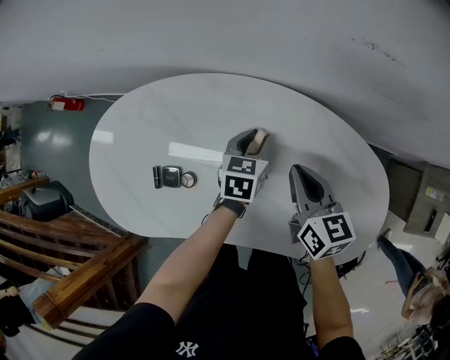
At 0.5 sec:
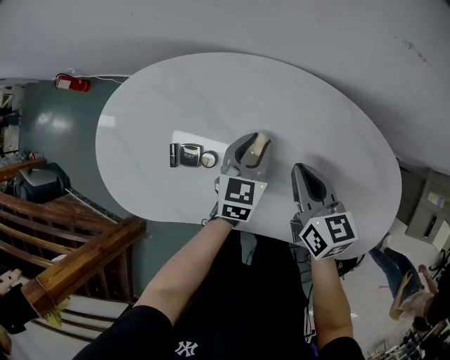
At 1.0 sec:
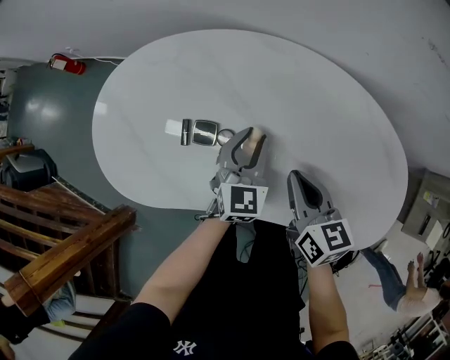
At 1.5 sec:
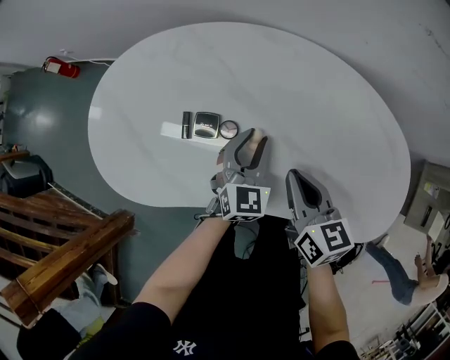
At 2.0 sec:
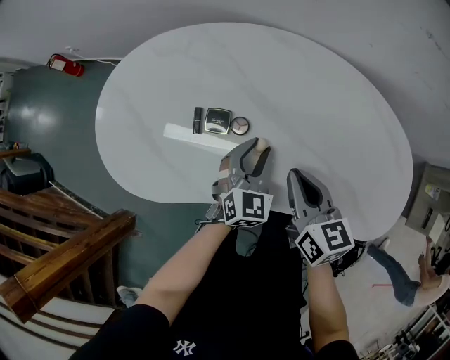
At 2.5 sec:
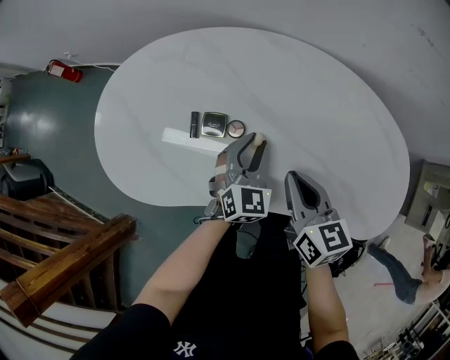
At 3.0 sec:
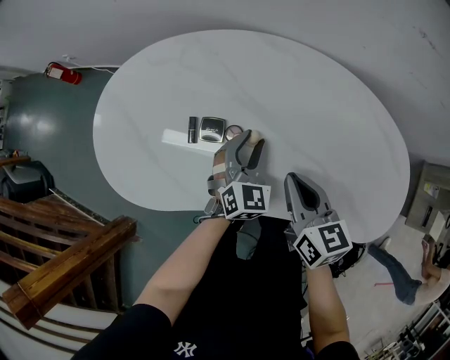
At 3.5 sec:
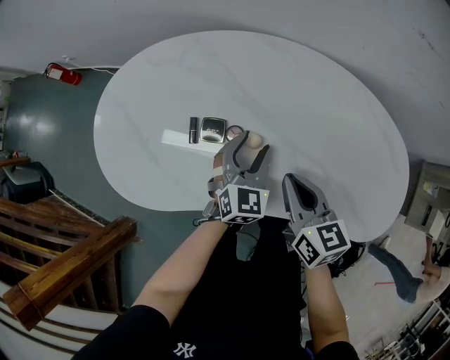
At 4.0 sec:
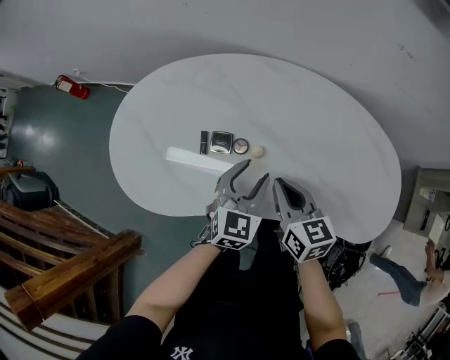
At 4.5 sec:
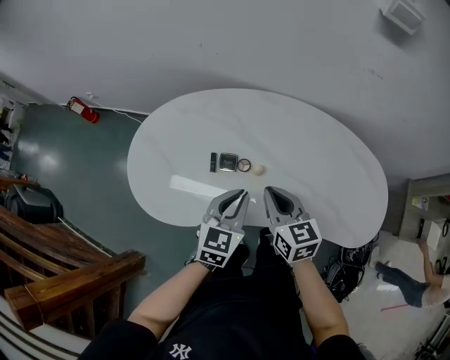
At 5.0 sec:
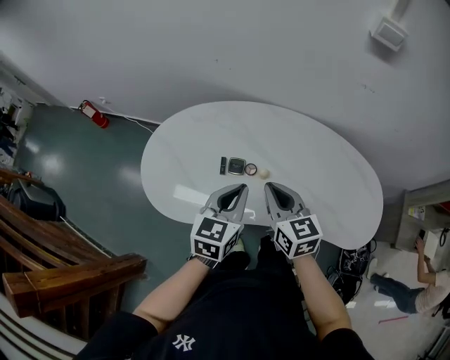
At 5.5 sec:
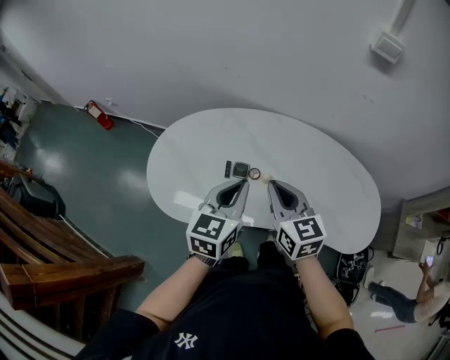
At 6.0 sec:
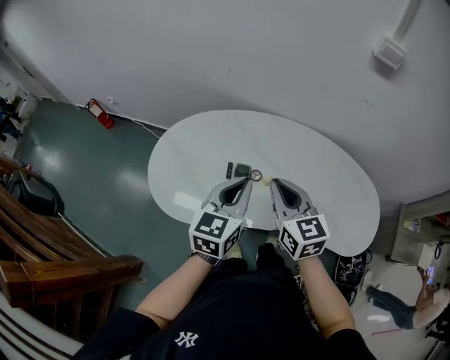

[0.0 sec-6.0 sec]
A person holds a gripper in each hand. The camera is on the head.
0.0 sec to 2.0 sec: The two grippers go roughly 25 cm to the left and backward. The left gripper swivels approximately 30 degrees.
2.0 sec to 4.0 sec: The left gripper heads upward, covering approximately 10 cm.
4.0 sec to 6.0 sec: The right gripper moves upward, some 20 cm; the left gripper is displaced upward and to the left by about 25 cm, and closes its fingers.

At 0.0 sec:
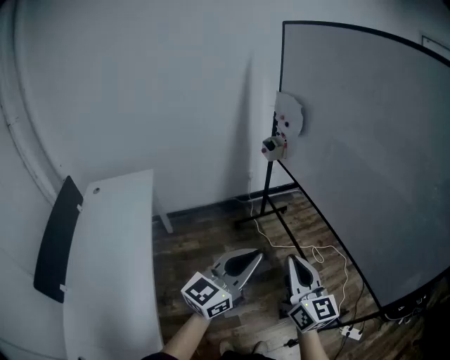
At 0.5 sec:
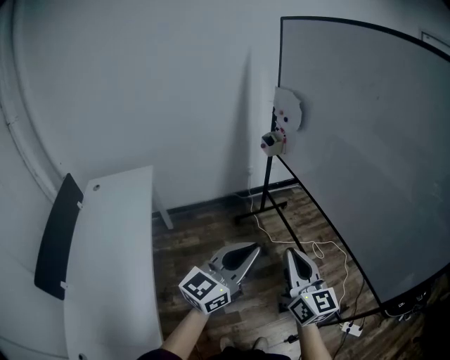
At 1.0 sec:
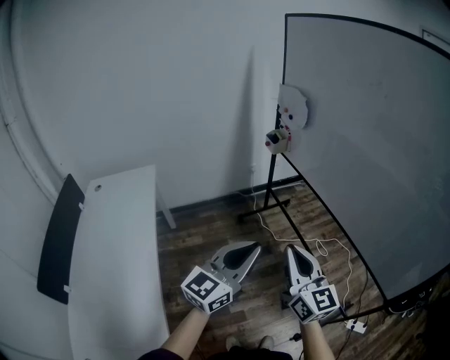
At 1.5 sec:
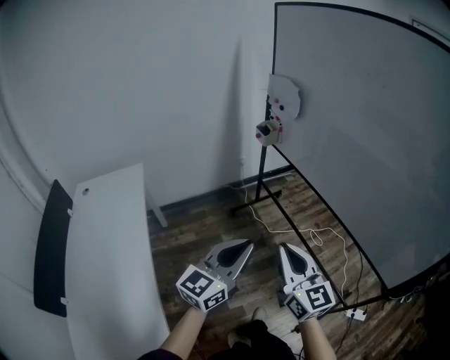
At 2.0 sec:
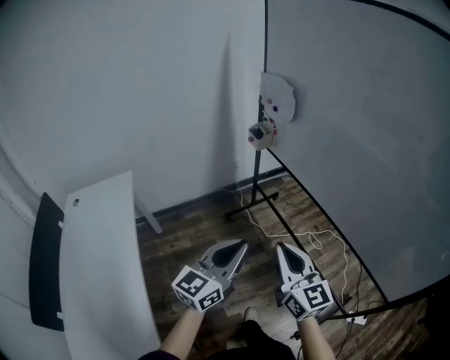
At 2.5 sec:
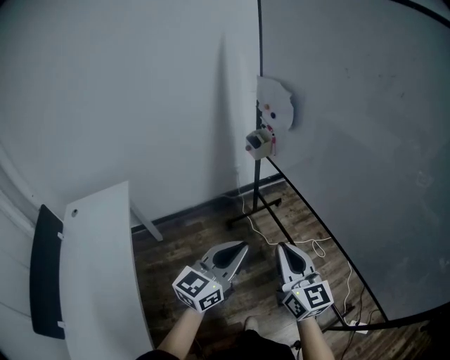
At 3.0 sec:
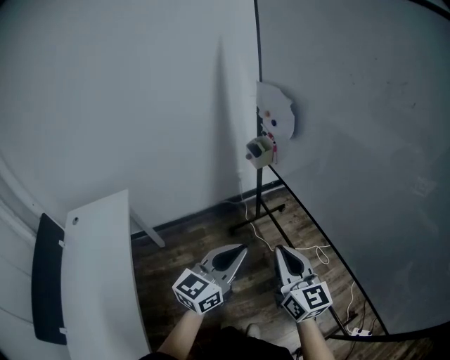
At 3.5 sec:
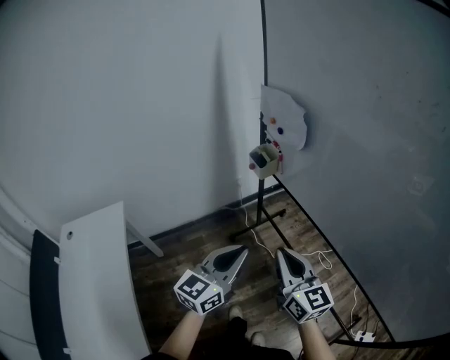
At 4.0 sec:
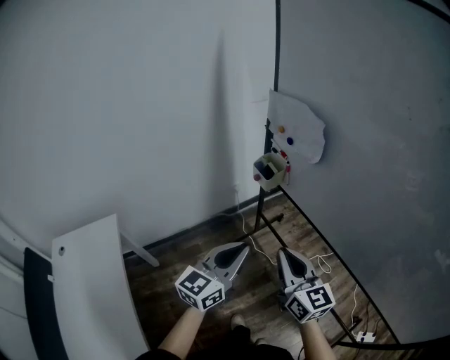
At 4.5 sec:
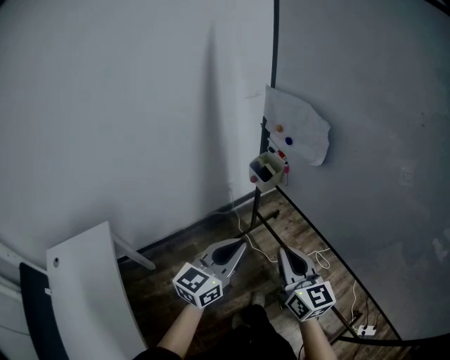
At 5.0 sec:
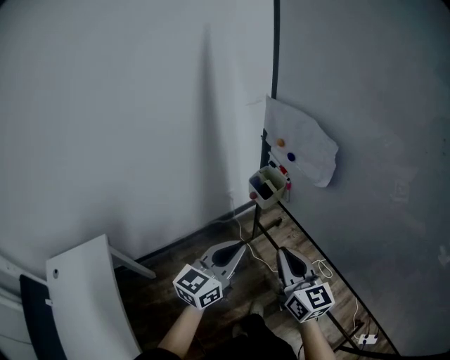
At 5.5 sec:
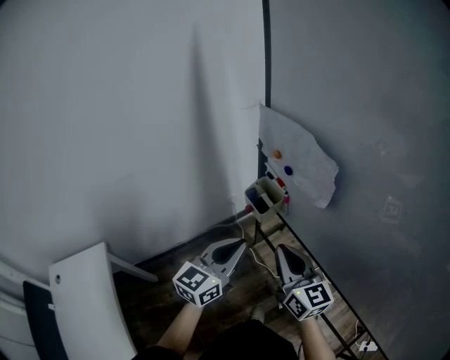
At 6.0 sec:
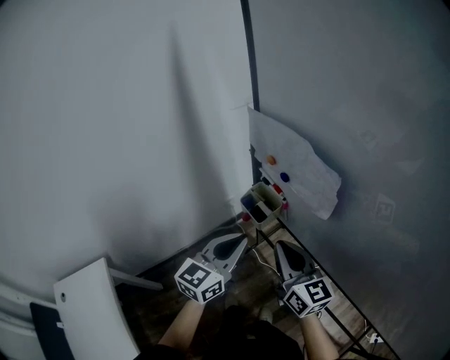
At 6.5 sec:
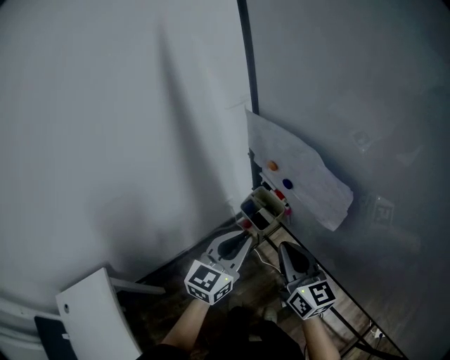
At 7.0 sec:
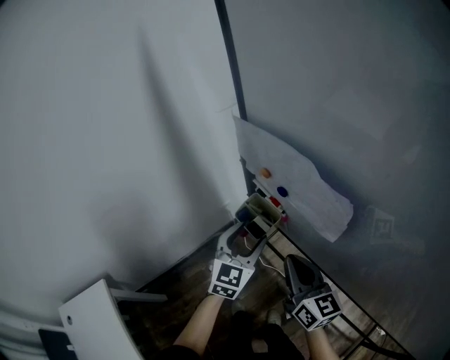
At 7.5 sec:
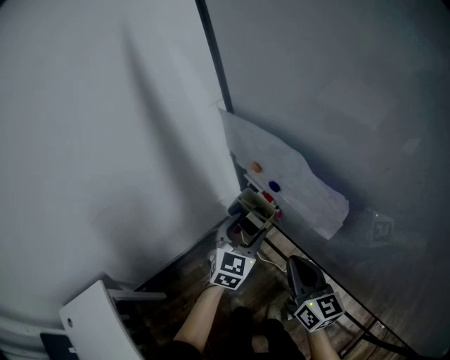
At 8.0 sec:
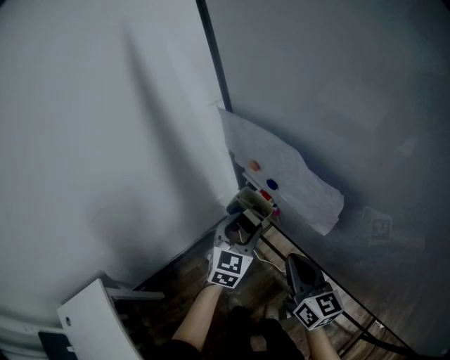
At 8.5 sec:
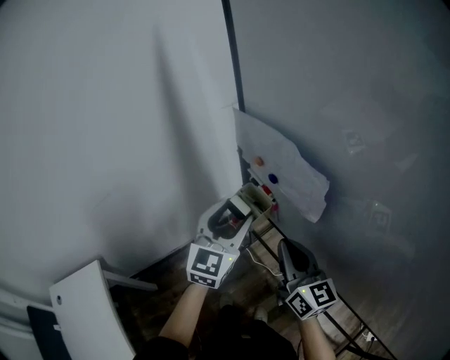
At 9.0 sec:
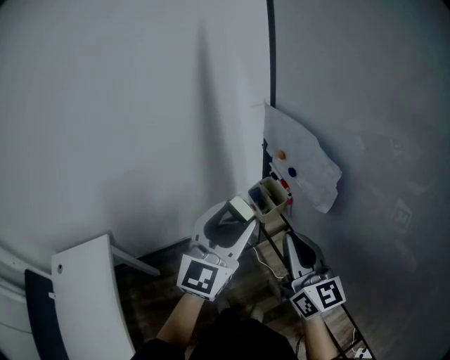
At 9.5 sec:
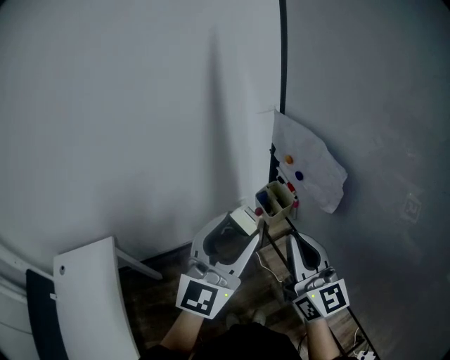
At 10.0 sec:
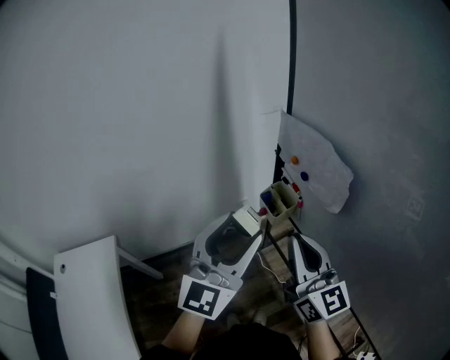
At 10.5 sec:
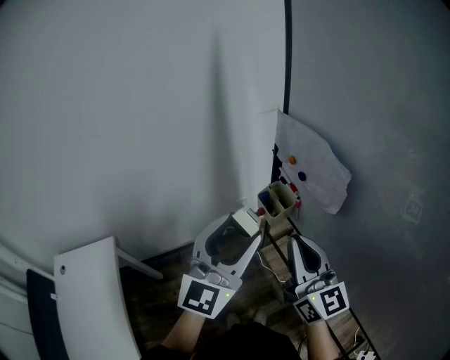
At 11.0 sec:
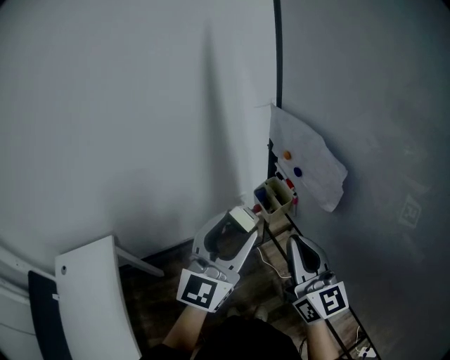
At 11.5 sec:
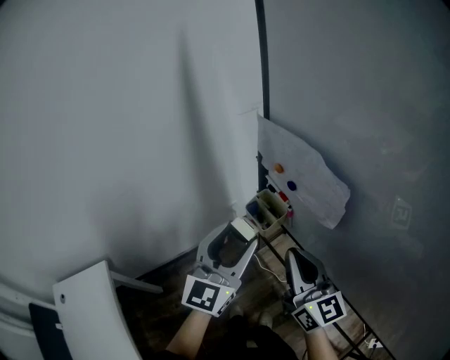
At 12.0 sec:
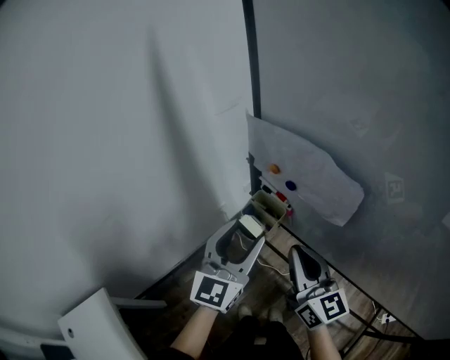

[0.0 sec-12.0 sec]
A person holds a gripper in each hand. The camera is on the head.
0.0 sec to 2.0 sec: Both grippers travel together forward and to the left, approximately 10 cm.
2.0 sec to 4.0 sec: Both grippers travel together forward, about 30 cm.
4.0 sec to 6.0 sec: Both grippers travel together forward, some 25 cm.
6.0 sec to 8.0 sec: The right gripper goes approximately 5 cm downward and to the right; the left gripper goes about 15 cm forward and downward, turns by about 30 degrees, and opens up.
8.0 sec to 10.0 sec: The left gripper is displaced upward and backward by about 30 cm, and points its fingers about 30 degrees further upward. Meanwhile the right gripper heads upward, backward and to the left, covering approximately 20 cm, and changes its angle by roughly 30 degrees.
10.0 sec to 12.0 sec: The left gripper shifts roughly 15 cm forward and downward, and changes its angle by some 20 degrees, while the right gripper heads downward and forward, covering approximately 10 cm, and changes its angle by approximately 20 degrees.

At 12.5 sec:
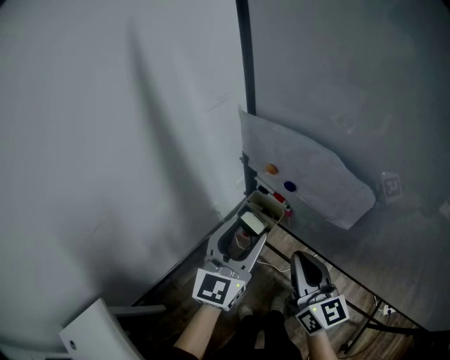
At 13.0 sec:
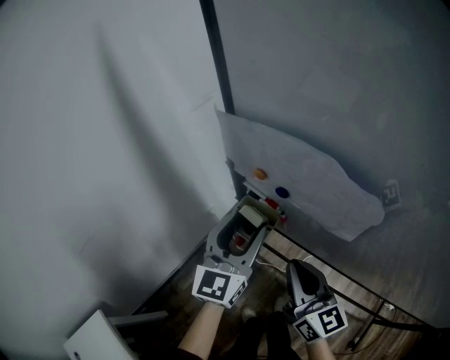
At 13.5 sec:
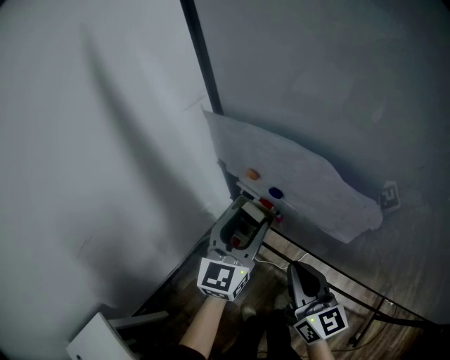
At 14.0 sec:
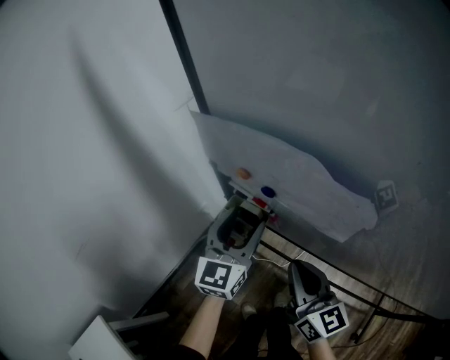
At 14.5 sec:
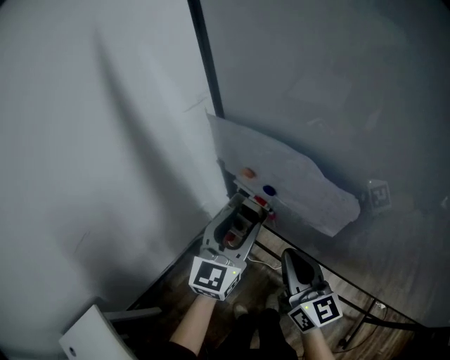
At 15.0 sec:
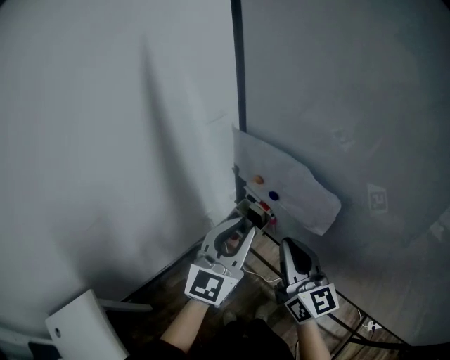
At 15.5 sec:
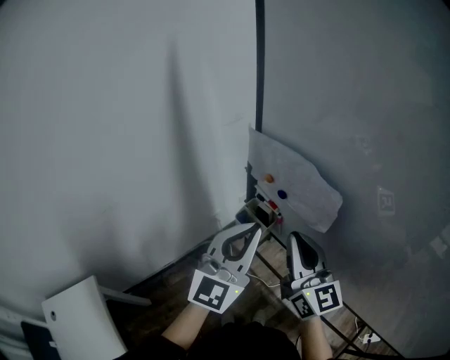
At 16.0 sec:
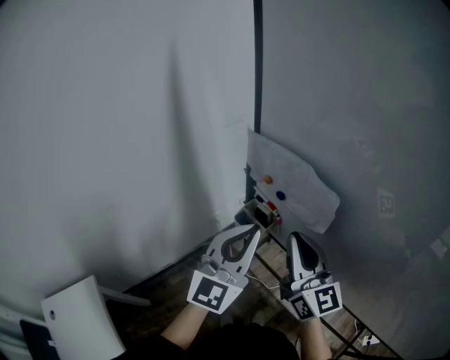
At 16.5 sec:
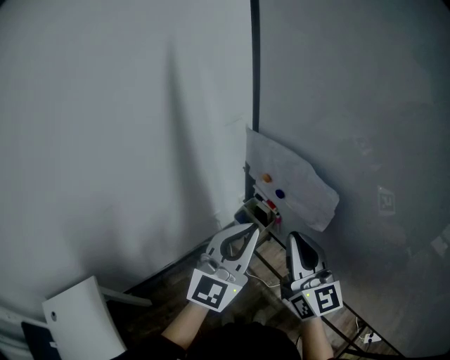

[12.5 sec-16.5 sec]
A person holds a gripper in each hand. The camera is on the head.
12.5 sec to 14.5 sec: The left gripper travels forward by about 5 cm.
14.5 sec to 16.5 sec: The left gripper goes roughly 15 cm upward and backward, and closes its fingers. The right gripper is displaced upward by some 10 cm.

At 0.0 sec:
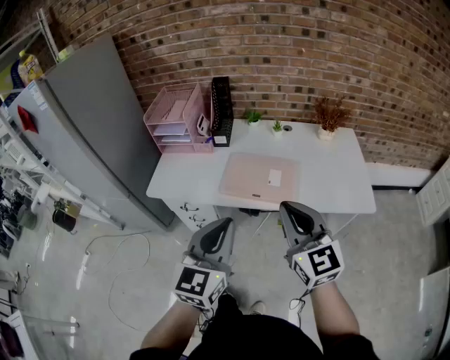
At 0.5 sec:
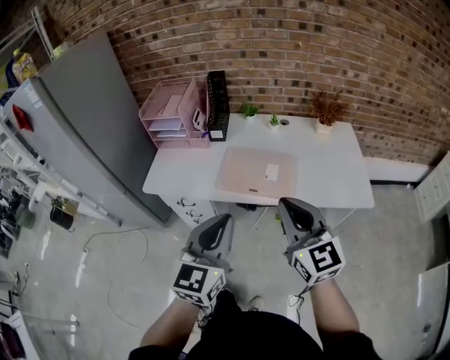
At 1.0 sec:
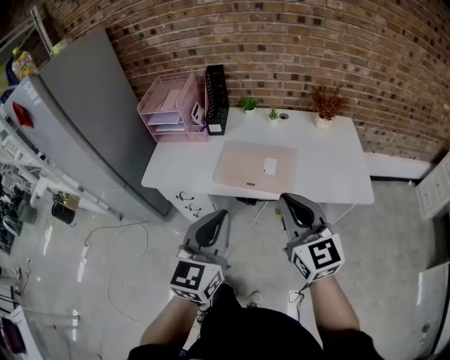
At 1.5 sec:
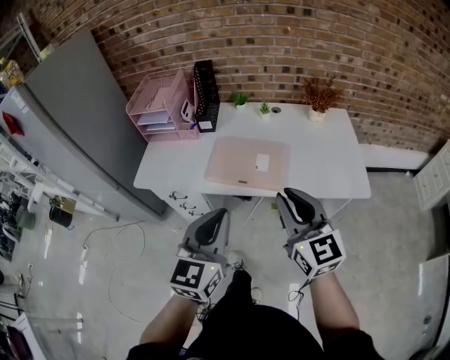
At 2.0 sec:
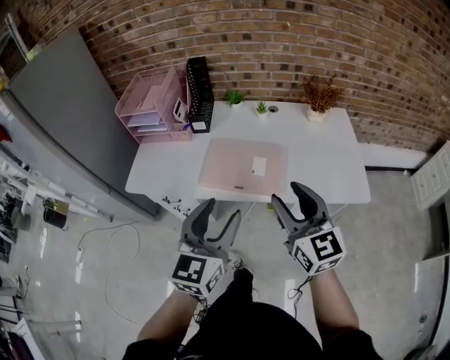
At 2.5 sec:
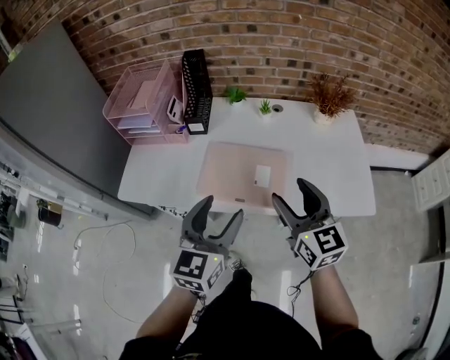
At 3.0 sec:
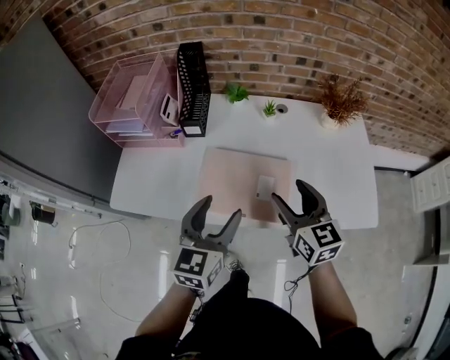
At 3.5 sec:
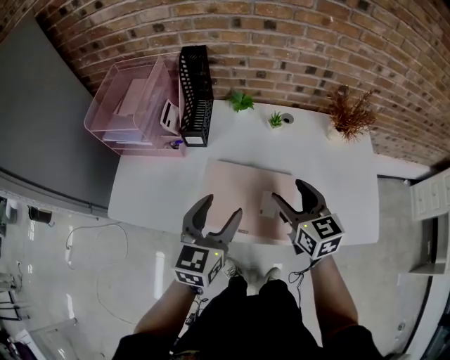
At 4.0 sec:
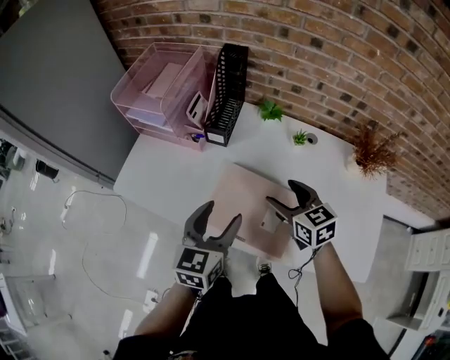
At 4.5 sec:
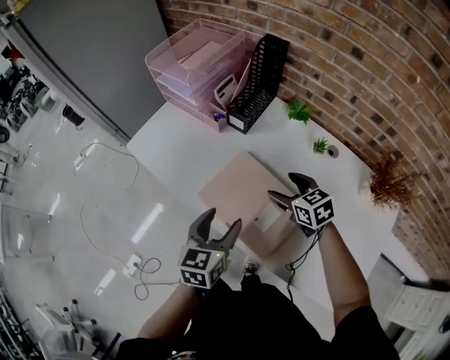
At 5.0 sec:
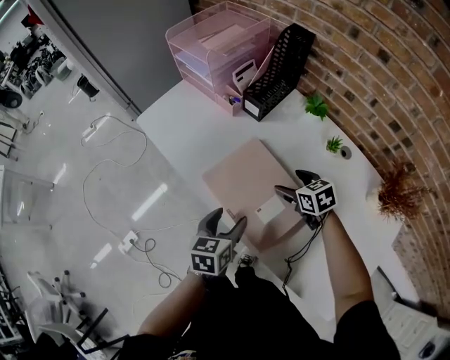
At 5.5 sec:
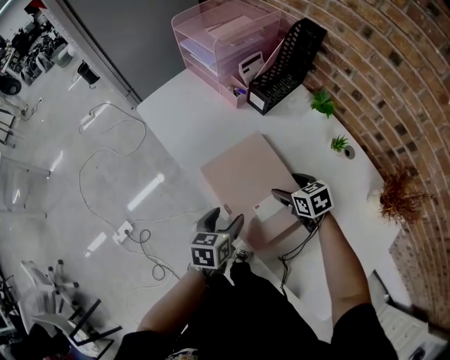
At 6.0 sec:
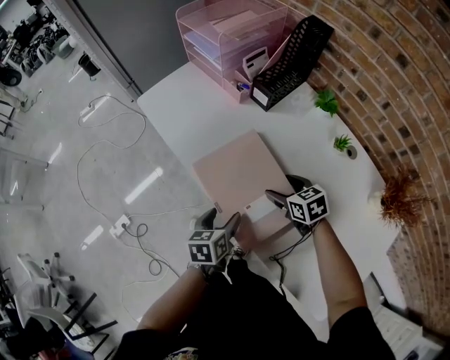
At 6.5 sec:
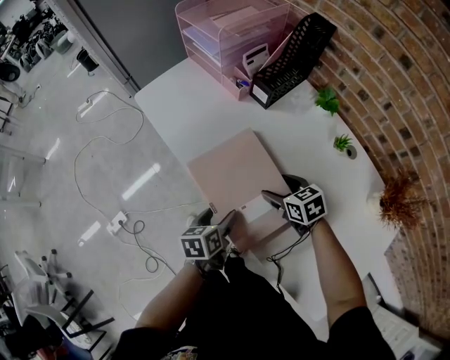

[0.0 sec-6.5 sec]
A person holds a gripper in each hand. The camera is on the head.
0.0 sec to 2.0 sec: The left gripper heads forward and to the right, covering about 10 cm, and opens up. Meanwhile the right gripper moves to the right and forward, roughly 10 cm, and opens up.
2.0 sec to 4.5 sec: The left gripper shifts by approximately 25 cm, and rotates roughly 40 degrees. The right gripper ends up some 40 cm from where it was, tilts its fingers roughly 40 degrees downward, and opens up.
4.5 sec to 6.5 sec: The left gripper shifts some 15 cm downward, and rotates roughly 40 degrees. The right gripper heads downward, covering roughly 10 cm.
